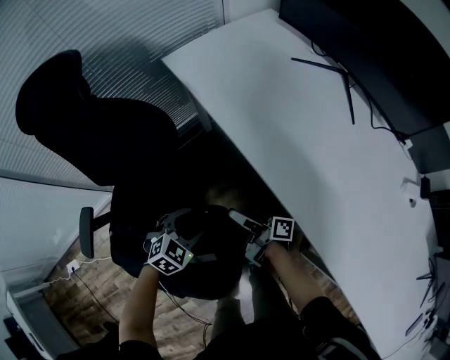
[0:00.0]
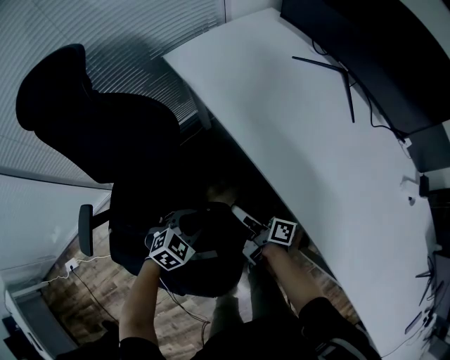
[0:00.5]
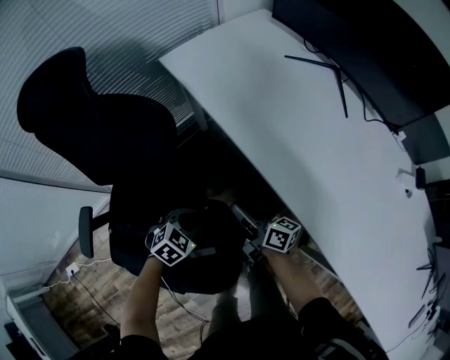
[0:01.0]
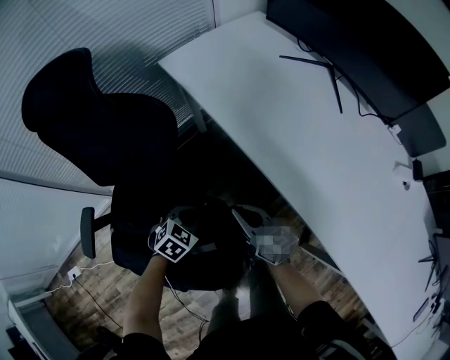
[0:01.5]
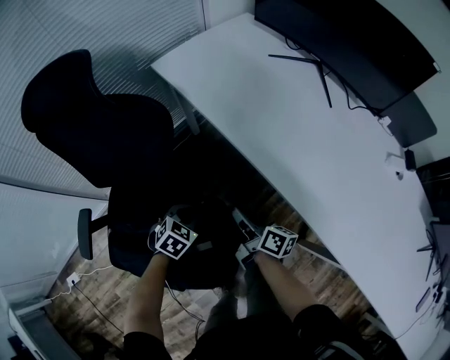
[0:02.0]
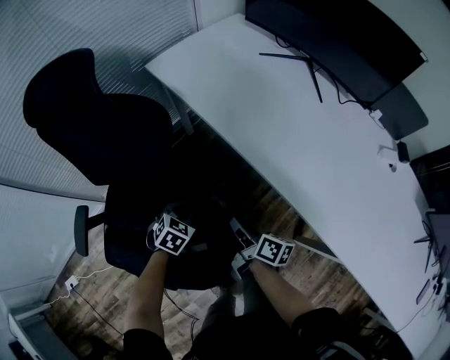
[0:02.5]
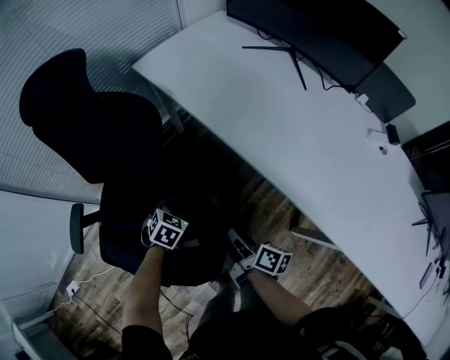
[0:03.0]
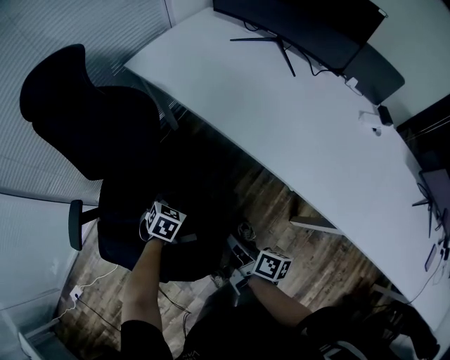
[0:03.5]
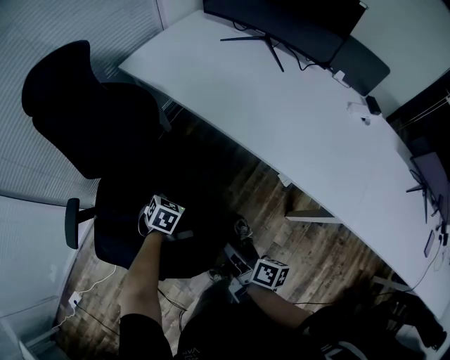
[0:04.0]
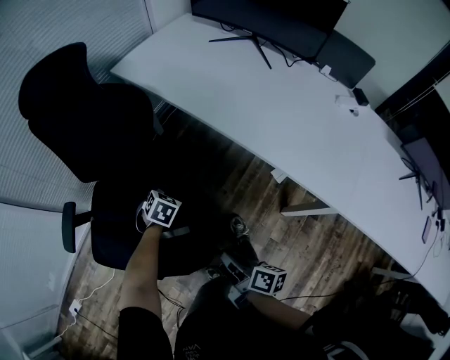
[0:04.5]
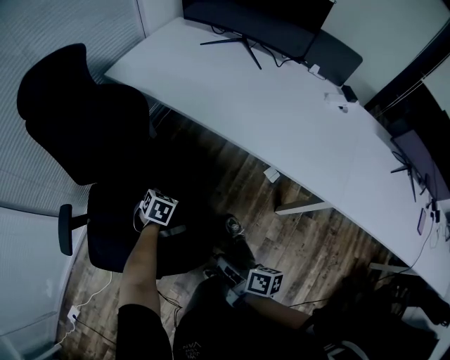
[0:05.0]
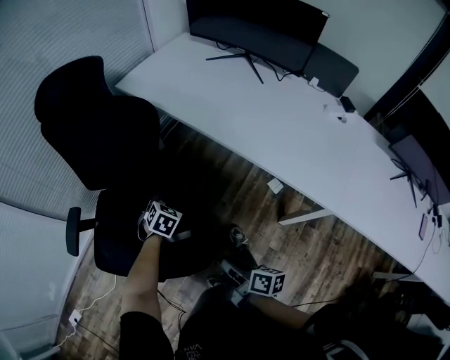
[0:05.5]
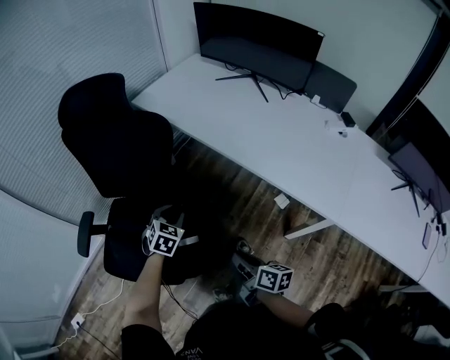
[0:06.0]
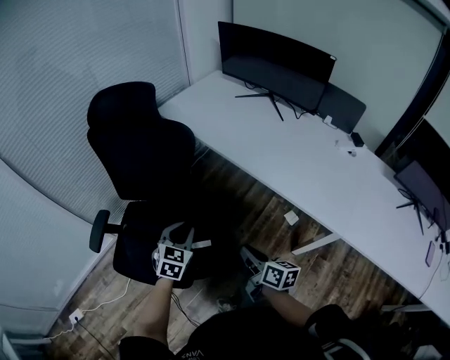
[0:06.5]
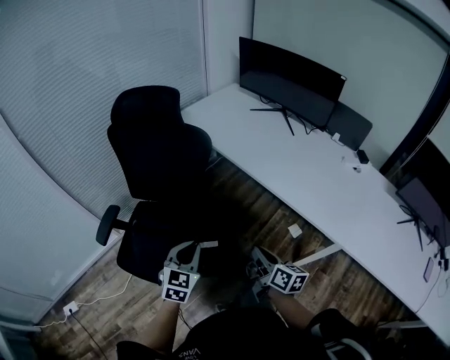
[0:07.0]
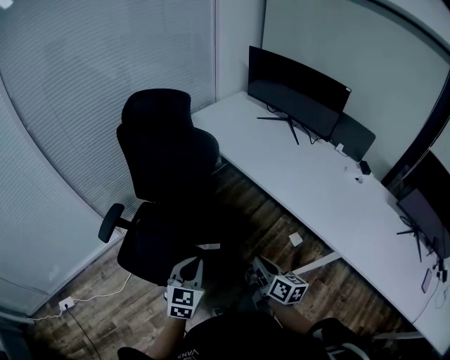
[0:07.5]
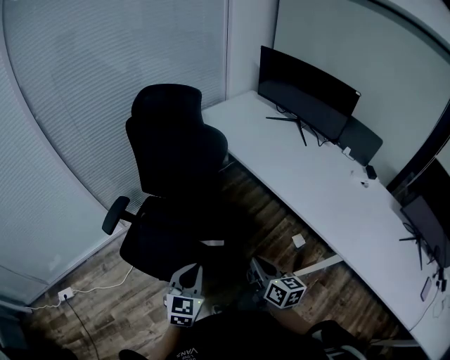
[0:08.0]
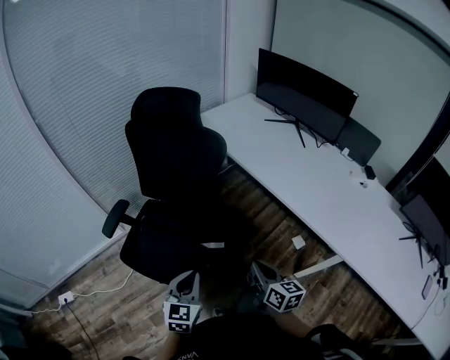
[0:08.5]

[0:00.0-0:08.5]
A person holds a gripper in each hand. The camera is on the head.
0:00.0 to 0:02.0: The left gripper closes up. Meanwhile the right gripper travels backward by about 5 cm, changes its angle by about 30 degrees, and closes its fingers.
0:02.0 to 0:04.0: The left gripper shifts approximately 5 cm backward. Meanwhile the right gripper is displaced backward by some 25 cm.
0:04.0 to 0:06.5: The left gripper is displaced upward and backward by roughly 25 cm, and changes its angle by roughly 30 degrees. The right gripper moves upward and backward, some 10 cm, and changes its angle by roughly 20 degrees.
0:06.5 to 0:08.5: The left gripper is displaced backward by approximately 20 cm, and swivels some 20 degrees, while the right gripper shifts some 10 cm backward and upward.

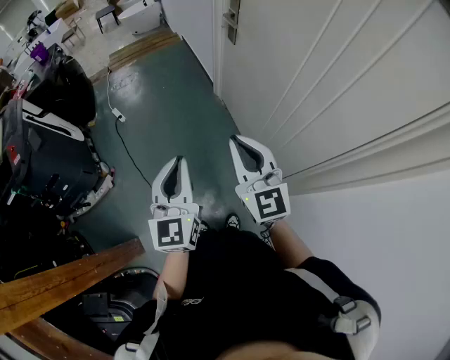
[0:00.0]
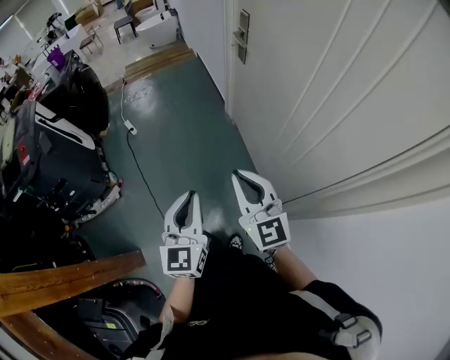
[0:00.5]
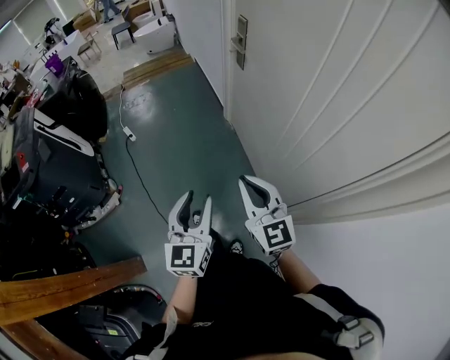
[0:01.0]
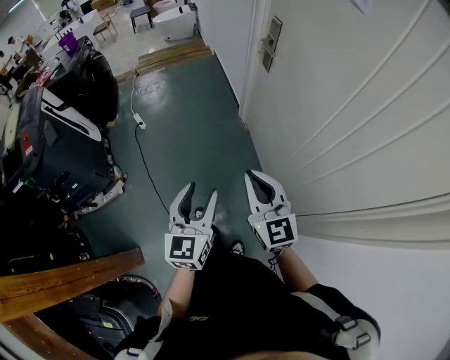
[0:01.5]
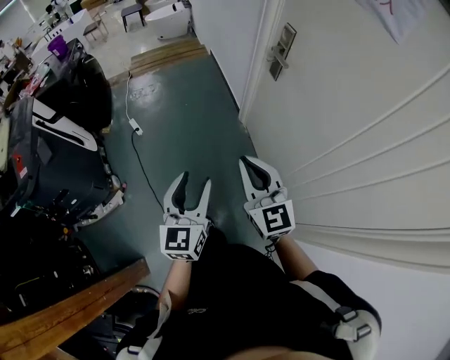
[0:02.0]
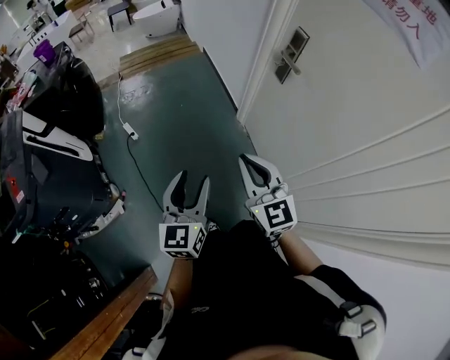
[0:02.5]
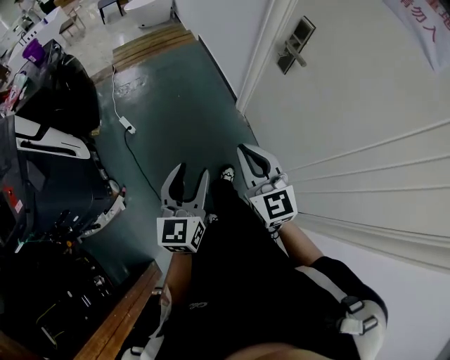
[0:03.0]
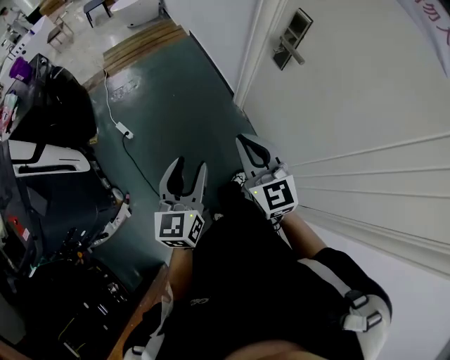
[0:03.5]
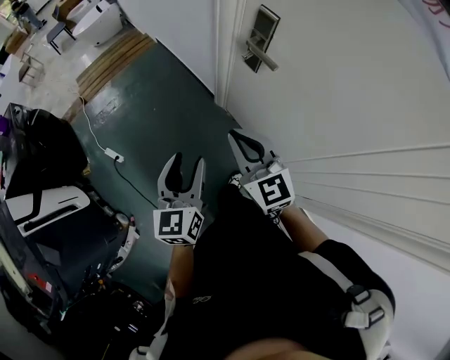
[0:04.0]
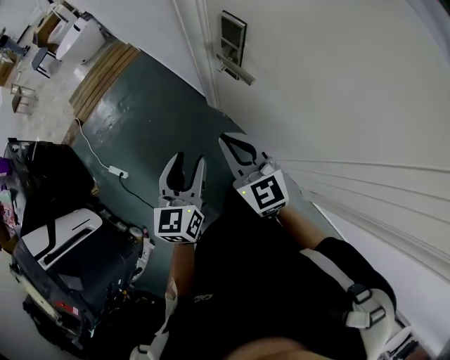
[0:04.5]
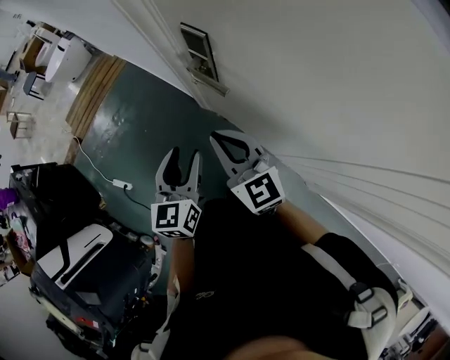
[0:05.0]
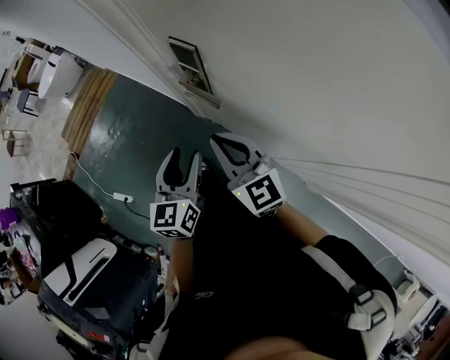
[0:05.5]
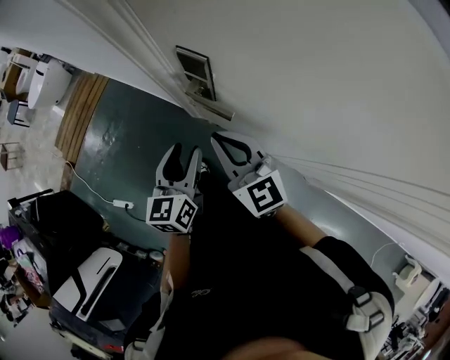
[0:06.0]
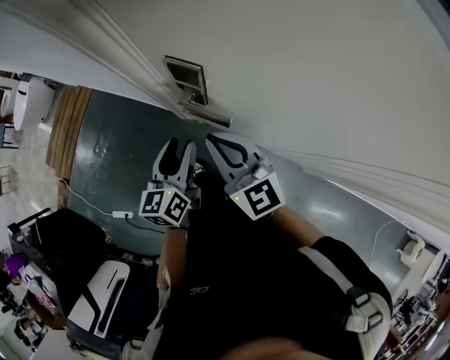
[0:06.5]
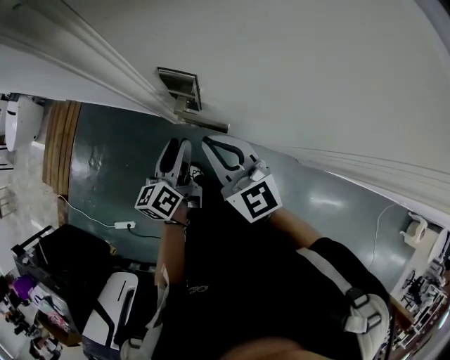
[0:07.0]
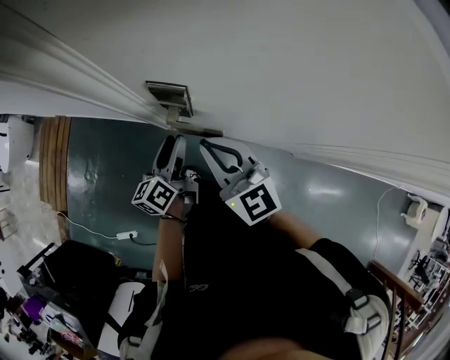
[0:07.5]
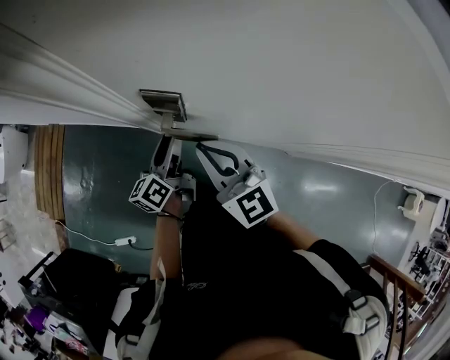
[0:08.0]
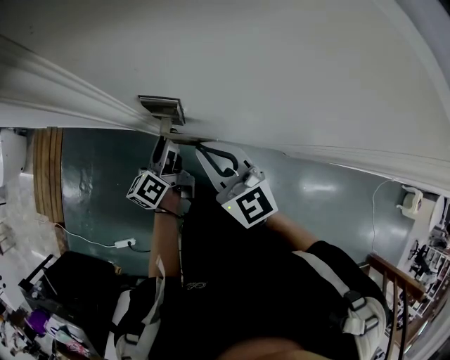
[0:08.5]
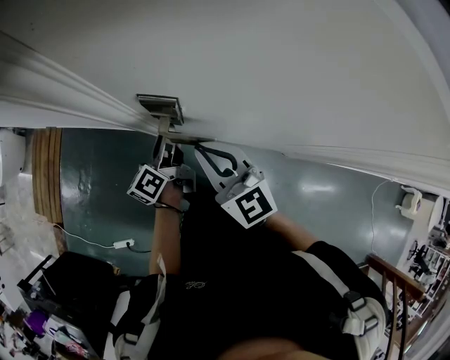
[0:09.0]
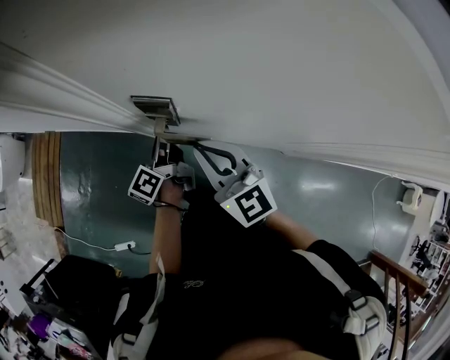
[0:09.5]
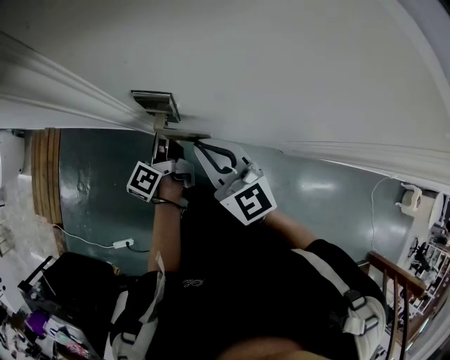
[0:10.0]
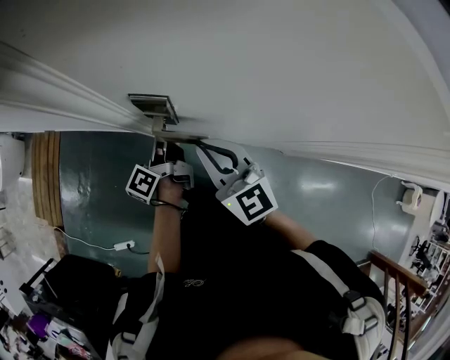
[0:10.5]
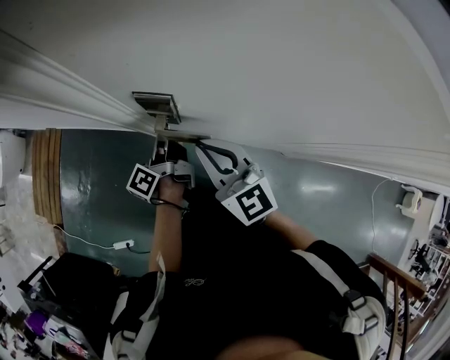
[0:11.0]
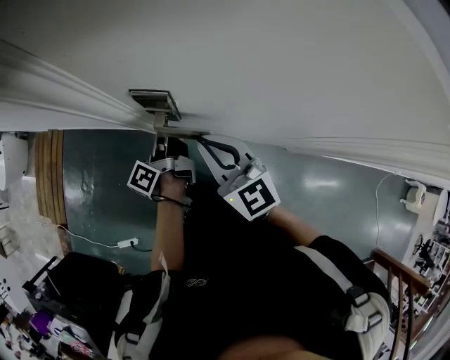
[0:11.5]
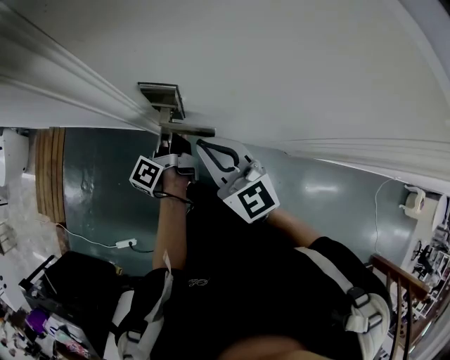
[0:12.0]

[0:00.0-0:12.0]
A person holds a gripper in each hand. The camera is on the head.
0:00.0 to 0:02.0: Both grippers move forward, about 20 cm. The left gripper opens.
0:02.0 to 0:04.0: The grippers both shift forward by some 30 cm.
0:04.0 to 0:06.0: Both grippers move forward and to the right, about 25 cm. The left gripper rotates about 20 degrees.
0:06.0 to 0:08.0: The left gripper is displaced forward and downward by roughly 15 cm, and rotates approximately 40 degrees.
0:08.0 to 0:10.0: The left gripper swivels approximately 20 degrees, and closes up.
0:10.0 to 0:12.0: The grippers stay close to where they were, moving slightly.

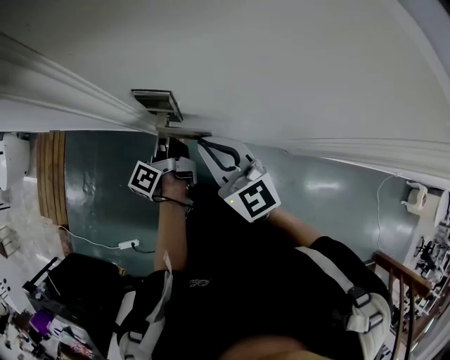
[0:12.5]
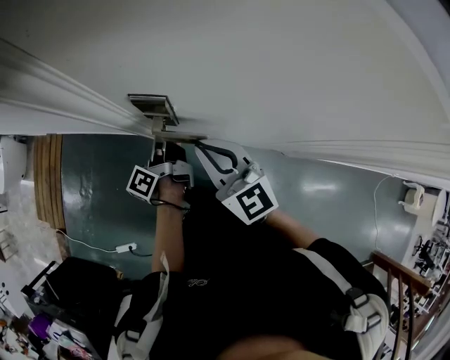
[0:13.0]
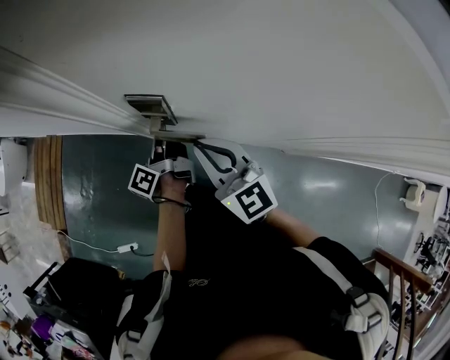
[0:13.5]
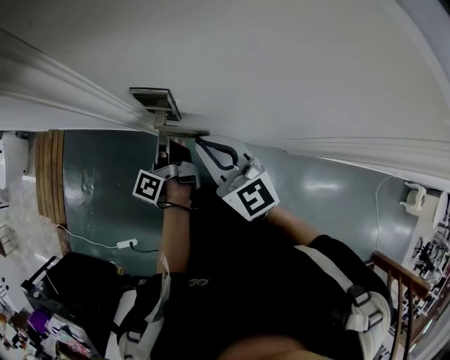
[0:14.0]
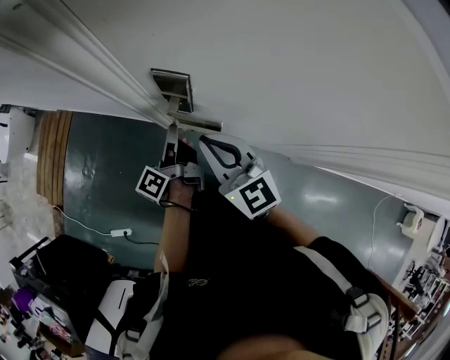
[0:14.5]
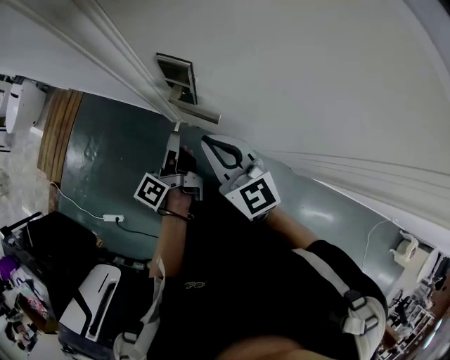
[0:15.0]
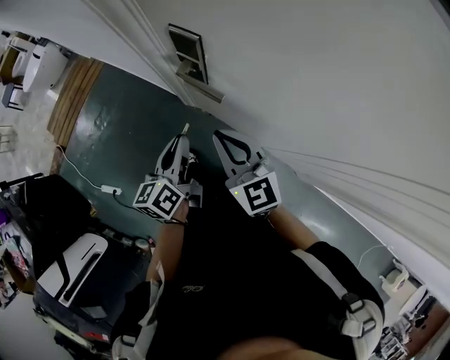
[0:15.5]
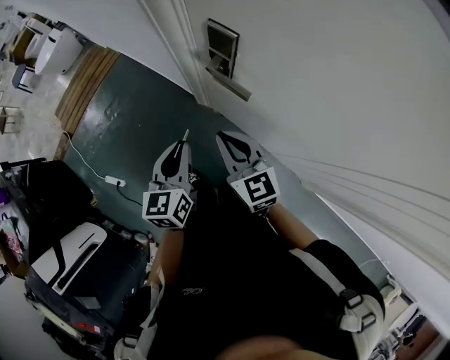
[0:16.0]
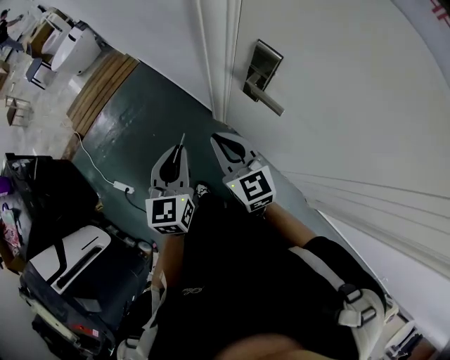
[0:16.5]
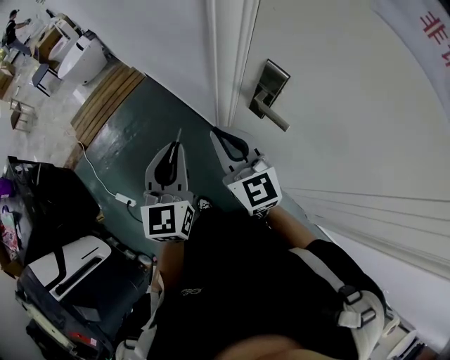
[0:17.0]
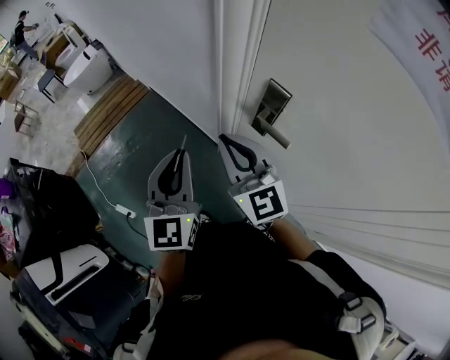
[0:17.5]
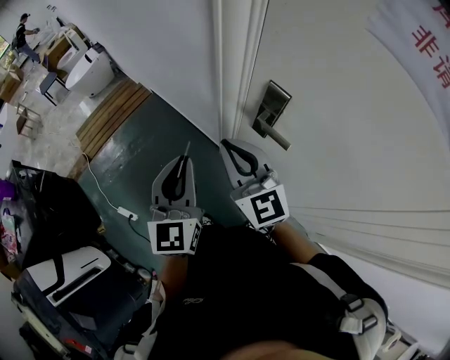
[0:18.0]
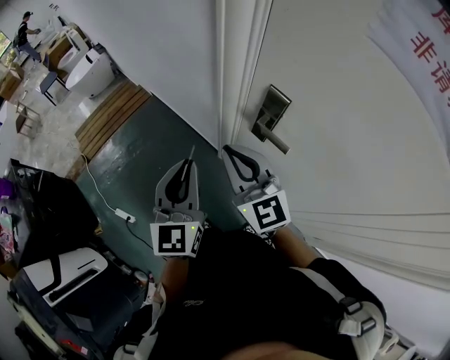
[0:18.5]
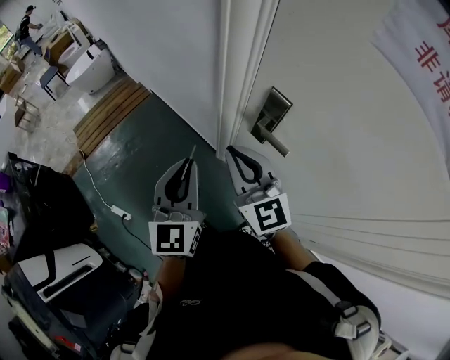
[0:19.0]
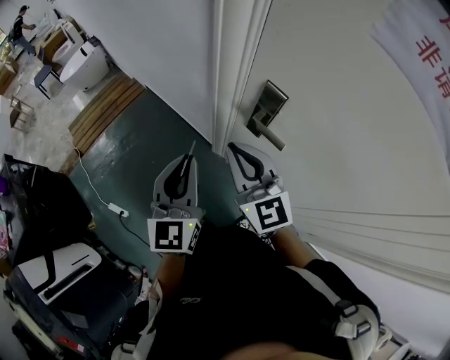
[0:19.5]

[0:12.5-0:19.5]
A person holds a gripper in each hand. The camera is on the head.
0:12.5 to 0:14.5: The grippers stay close to where they were, moving slightly.
0:14.5 to 0:16.0: The left gripper shifts about 15 cm backward, and rotates around the line of its fingers by about 60 degrees, clockwise from behind; the right gripper is displaced backward and downward by roughly 10 cm.
0:16.0 to 0:17.5: Both grippers travel together upward and to the left, about 20 cm. The right gripper rotates about 20 degrees; the left gripper changes its angle by about 30 degrees.
0:17.5 to 0:19.5: The grippers stay close to where they were, moving slightly.
